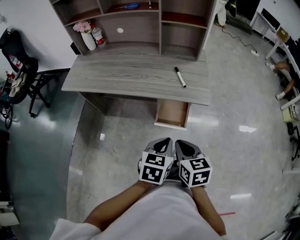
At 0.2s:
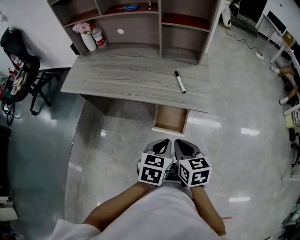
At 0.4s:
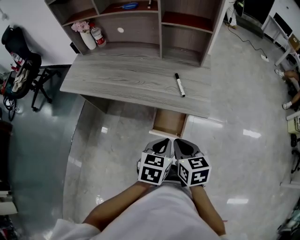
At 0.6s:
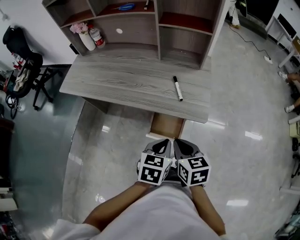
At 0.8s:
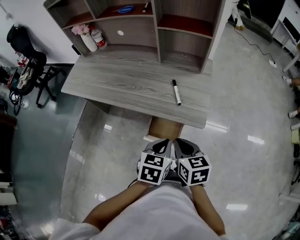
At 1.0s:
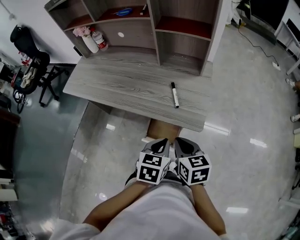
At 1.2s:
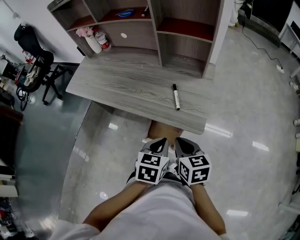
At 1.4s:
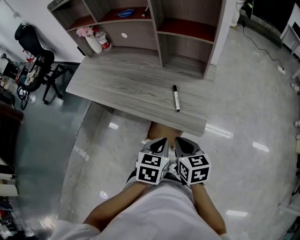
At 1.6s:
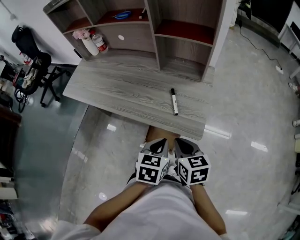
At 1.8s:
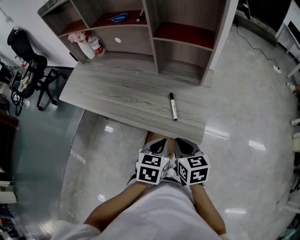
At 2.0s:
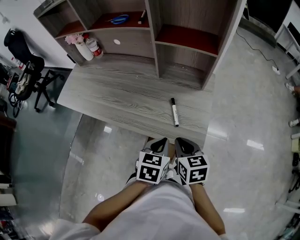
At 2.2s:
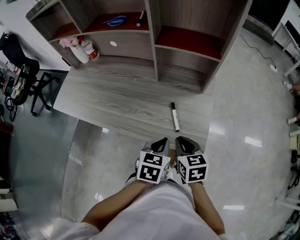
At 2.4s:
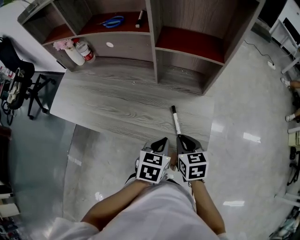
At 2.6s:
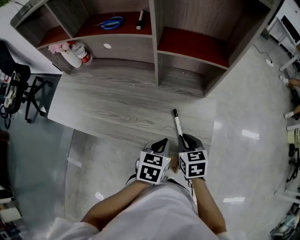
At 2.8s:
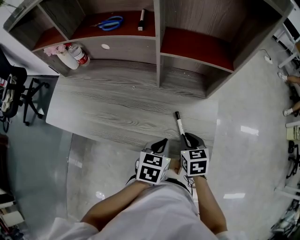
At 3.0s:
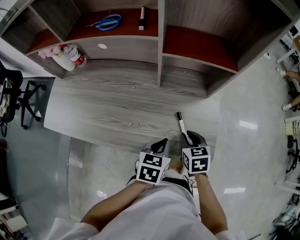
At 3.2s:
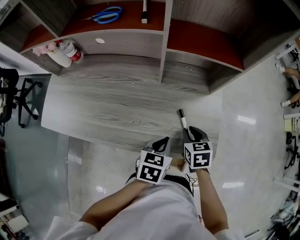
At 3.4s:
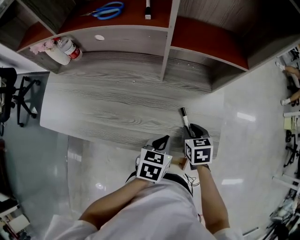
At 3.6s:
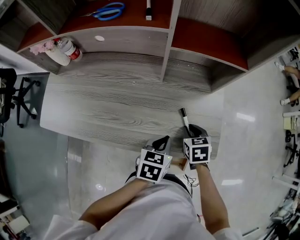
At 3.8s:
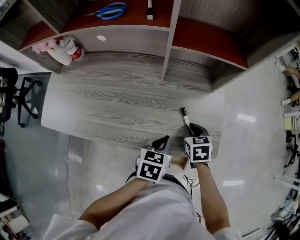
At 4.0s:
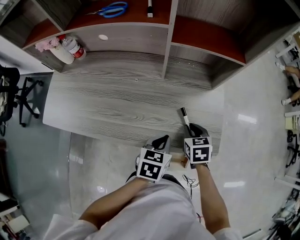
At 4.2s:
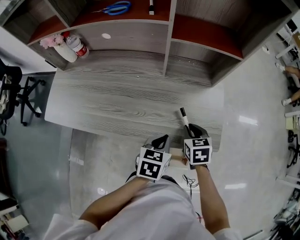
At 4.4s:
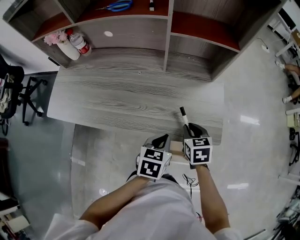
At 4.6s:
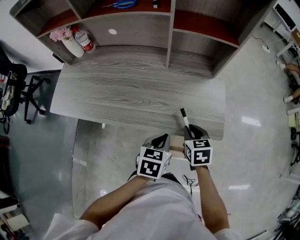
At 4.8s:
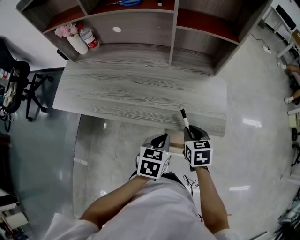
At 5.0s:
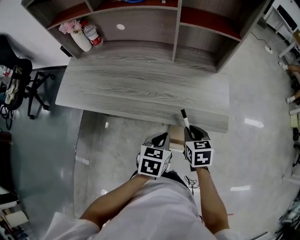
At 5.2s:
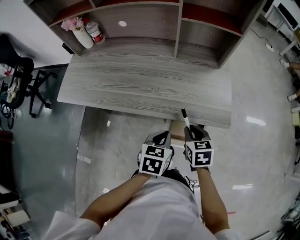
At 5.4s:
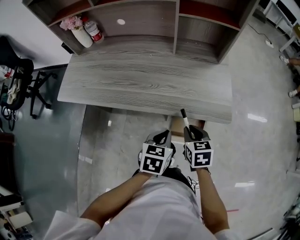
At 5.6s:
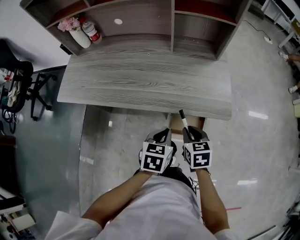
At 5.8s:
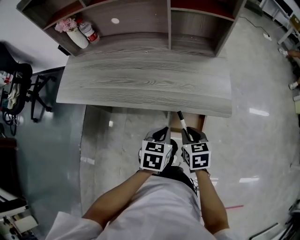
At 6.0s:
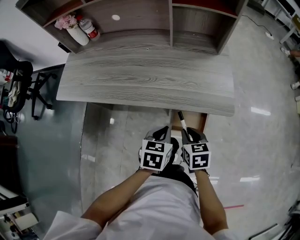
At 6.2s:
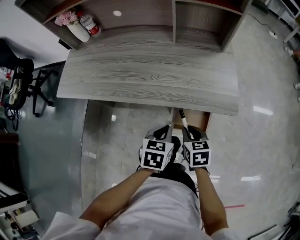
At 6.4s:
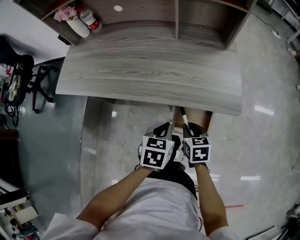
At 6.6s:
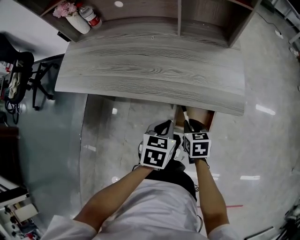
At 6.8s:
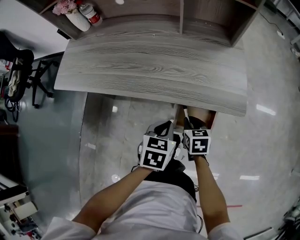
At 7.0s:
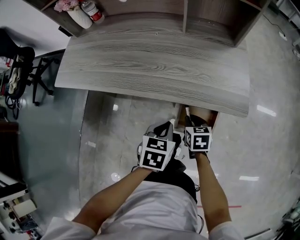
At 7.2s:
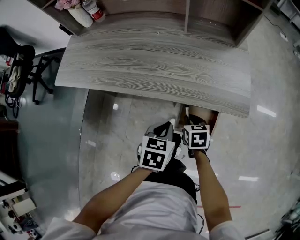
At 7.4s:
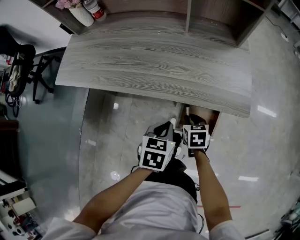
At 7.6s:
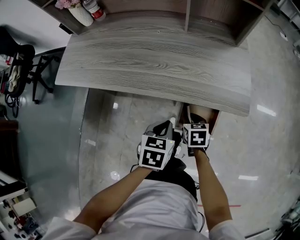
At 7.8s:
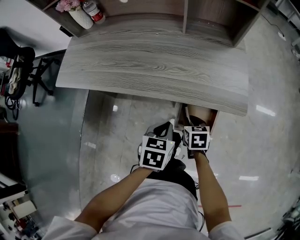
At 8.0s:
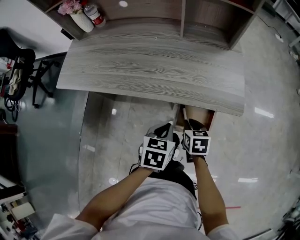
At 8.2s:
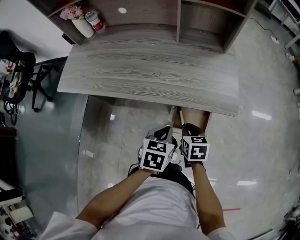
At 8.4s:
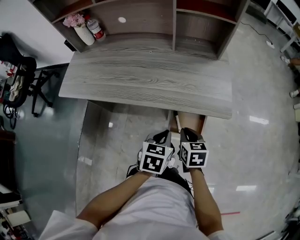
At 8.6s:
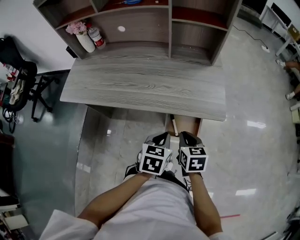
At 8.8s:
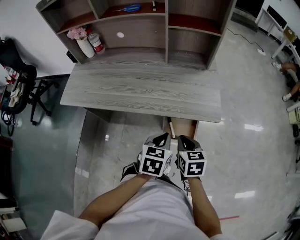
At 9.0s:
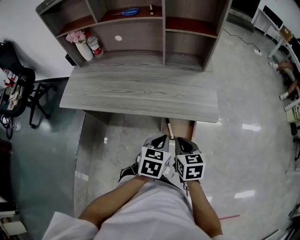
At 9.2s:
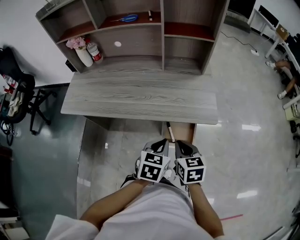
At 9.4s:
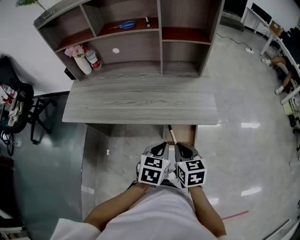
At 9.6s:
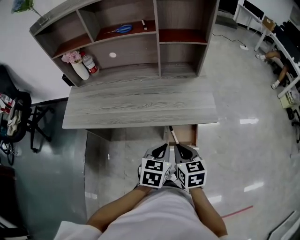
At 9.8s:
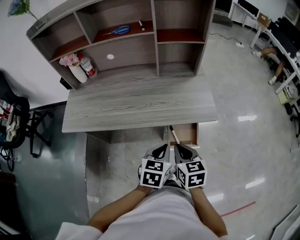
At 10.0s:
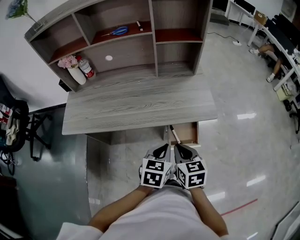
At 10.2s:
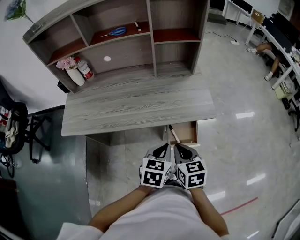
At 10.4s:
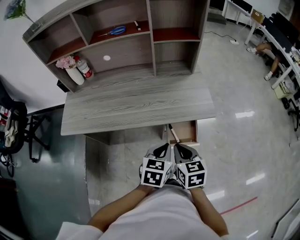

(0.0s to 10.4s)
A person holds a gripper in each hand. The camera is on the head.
0.0s - 1.4s: Both grippers travel together forward and to the right, roughly 20 cm.
1.4s - 3.0s: Both grippers move forward, roughly 20 cm. The right gripper swivels approximately 20 degrees.
3.0s - 4.4s: The two grippers go approximately 5 cm backward.
4.4s - 6.0s: The left gripper travels backward by about 10 cm; the right gripper is displaced backward by approximately 15 cm.
6.0s - 7.4s: The right gripper heads downward, covering approximately 10 cm.
7.4s - 9.0s: The left gripper moves upward and to the right, roughly 10 cm. Meanwhile the right gripper moves upward and backward, approximately 20 cm.
9.0s - 10.4s: The left gripper changes place by some 5 cm. Meanwhile the right gripper heads to the left, covering approximately 5 cm.

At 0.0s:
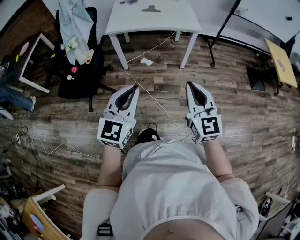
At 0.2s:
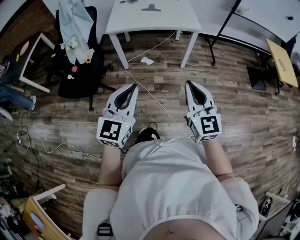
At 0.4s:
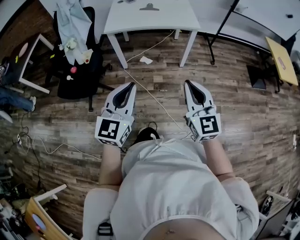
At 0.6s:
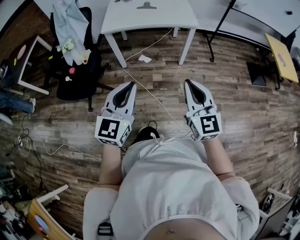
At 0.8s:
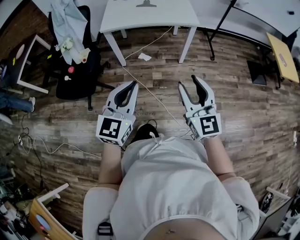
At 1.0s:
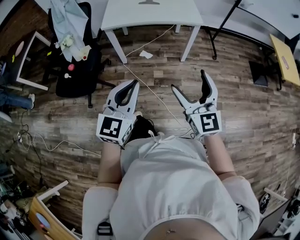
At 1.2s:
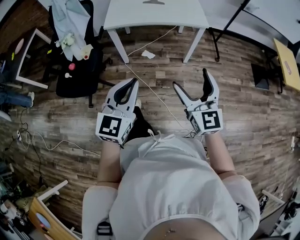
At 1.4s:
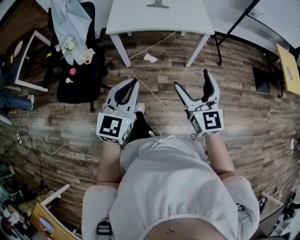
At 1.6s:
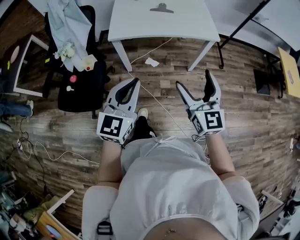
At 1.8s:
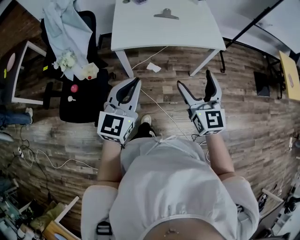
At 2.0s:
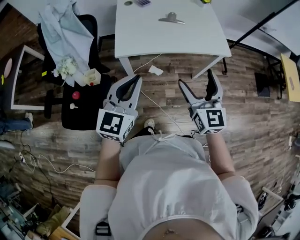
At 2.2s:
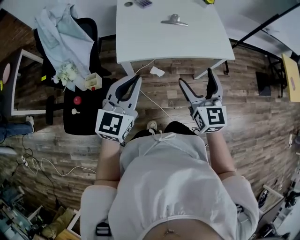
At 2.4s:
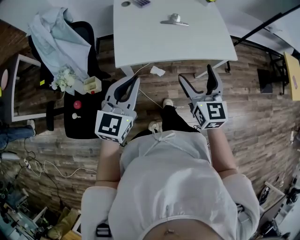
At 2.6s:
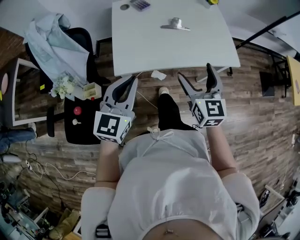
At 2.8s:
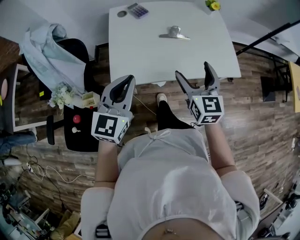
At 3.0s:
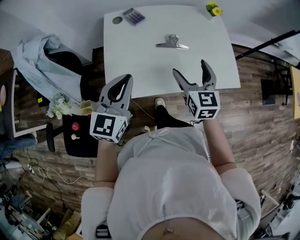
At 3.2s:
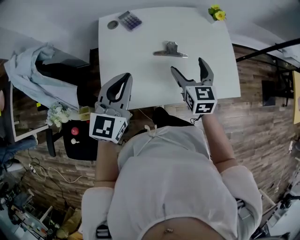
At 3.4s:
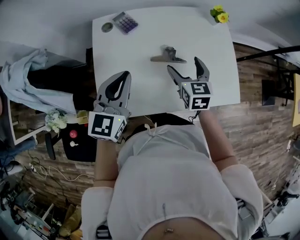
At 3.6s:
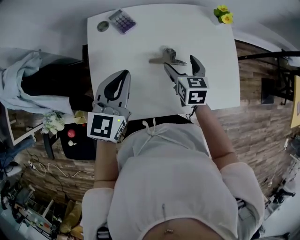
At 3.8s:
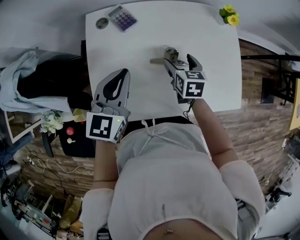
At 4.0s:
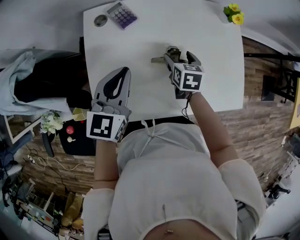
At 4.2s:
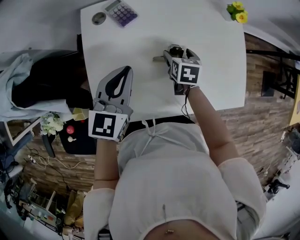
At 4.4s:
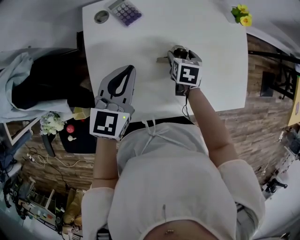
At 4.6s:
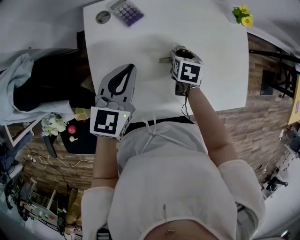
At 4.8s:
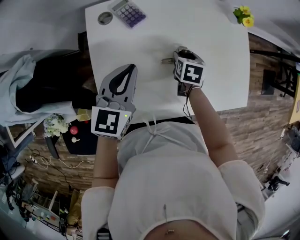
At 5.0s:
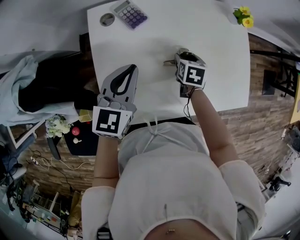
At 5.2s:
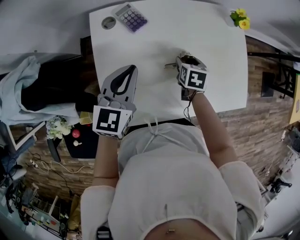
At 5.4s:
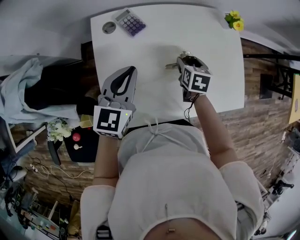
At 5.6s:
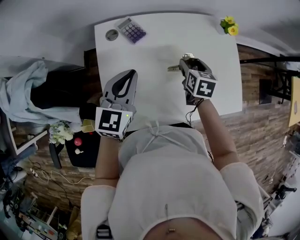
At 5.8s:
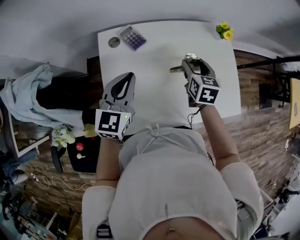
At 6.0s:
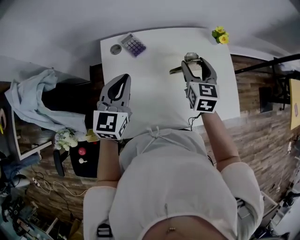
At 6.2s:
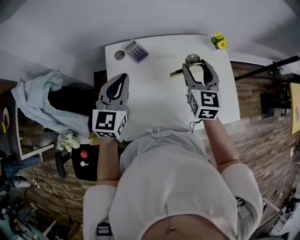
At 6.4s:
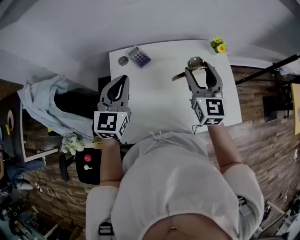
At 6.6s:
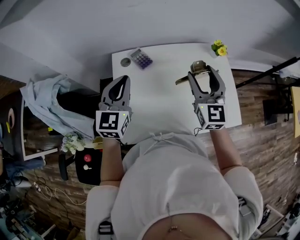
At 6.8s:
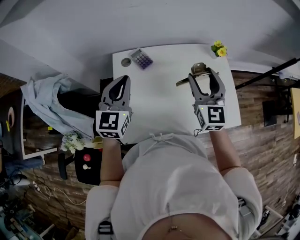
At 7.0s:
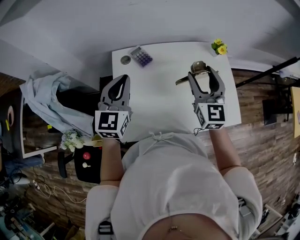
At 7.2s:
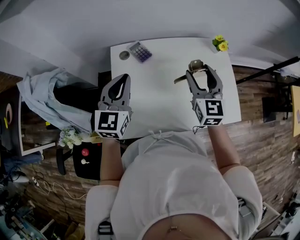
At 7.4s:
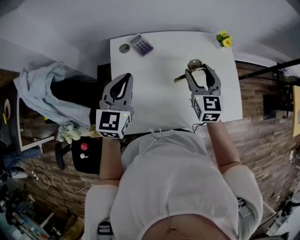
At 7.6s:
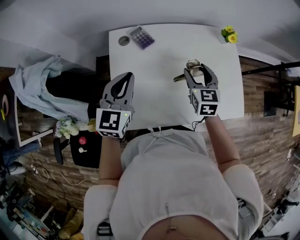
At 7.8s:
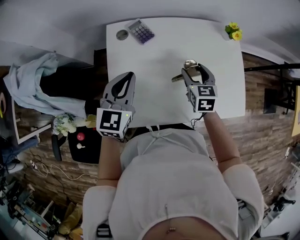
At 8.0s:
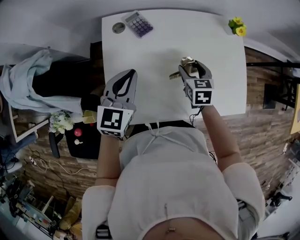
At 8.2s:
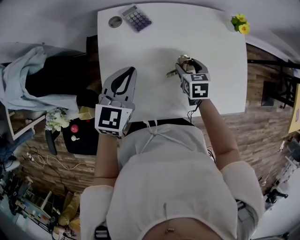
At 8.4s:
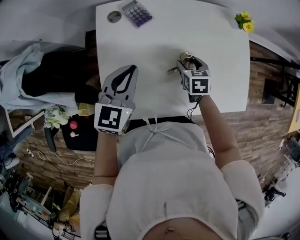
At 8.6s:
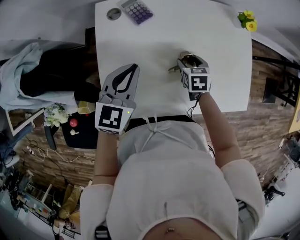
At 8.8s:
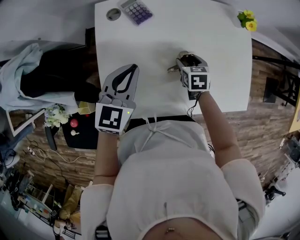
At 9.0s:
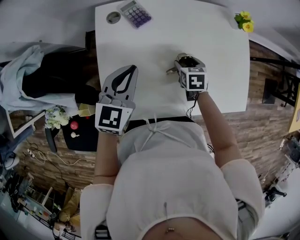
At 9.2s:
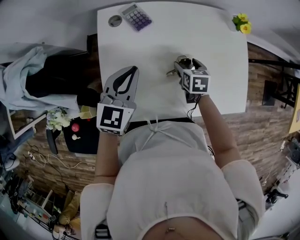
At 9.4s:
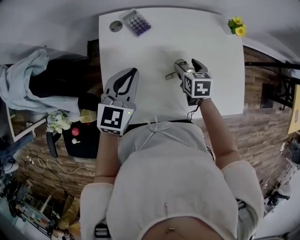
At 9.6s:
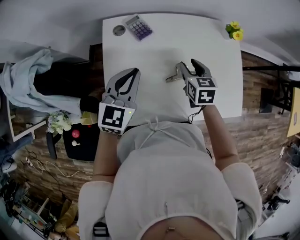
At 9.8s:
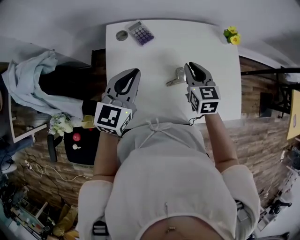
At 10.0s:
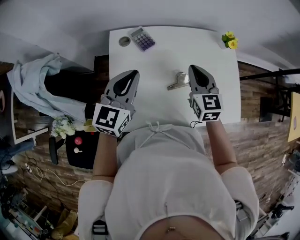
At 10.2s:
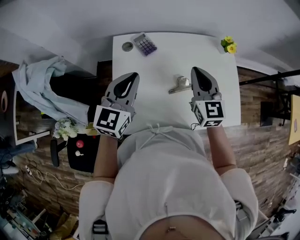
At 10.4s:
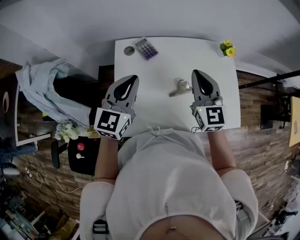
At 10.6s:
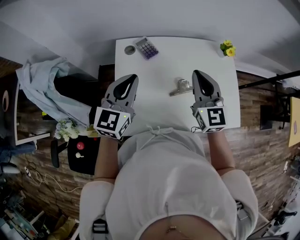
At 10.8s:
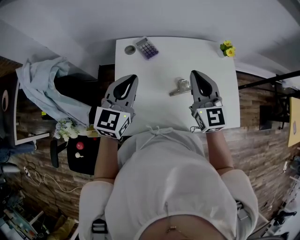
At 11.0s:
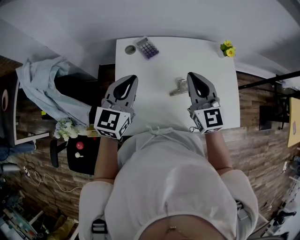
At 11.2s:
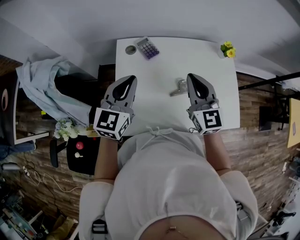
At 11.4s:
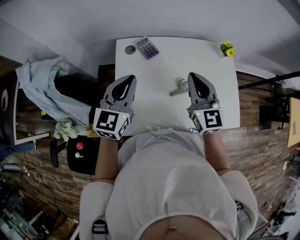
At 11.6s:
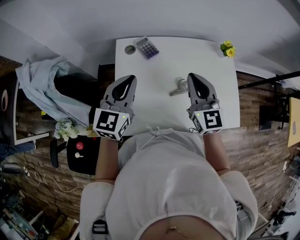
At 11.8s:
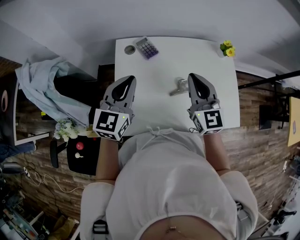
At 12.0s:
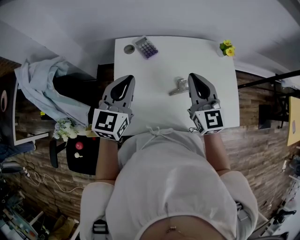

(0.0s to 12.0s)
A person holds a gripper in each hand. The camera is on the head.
0.0s - 1.6s: The left gripper heads forward and to the left, covering some 25 cm. Meanwhile the right gripper heads forward, covering approximately 25 cm, and opens its fingers.
1.6s - 3.0s: The pair of grippers is taken forward, approximately 50 cm.
3.0s - 4.4s: The left gripper moves forward and downward, some 25 cm, while the right gripper is displaced downward and forward by approximately 30 cm, and points its fingers roughly 40 degrees further downward.
4.4s - 6.0s: The right gripper goes about 25 cm upward, and points its fingers some 30 degrees further upward, while the left gripper is displaced upward by approximately 10 cm.
6.0s - 7.6s: The right gripper goes upward and returns, some 10 cm each way.
7.6s - 9.0s: The left gripper travels downward by about 10 cm; the right gripper heads downward, covering about 20 cm, and swivels about 30 degrees.
9.0s - 10.4s: The right gripper shifts some 30 cm upward, tilts its fingers roughly 50 degrees upward, and closes, while the left gripper shifts some 15 cm upward.
10.4s - 12.0s: The grippers stay close to where they were, moving slightly.

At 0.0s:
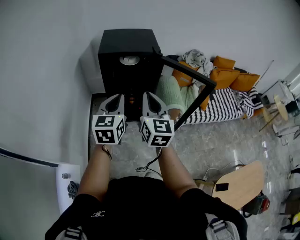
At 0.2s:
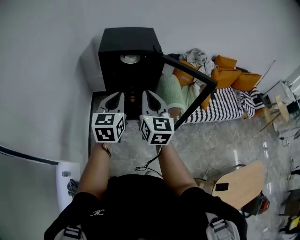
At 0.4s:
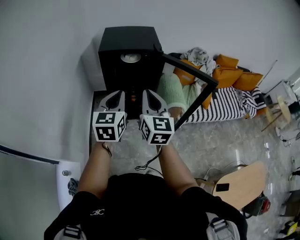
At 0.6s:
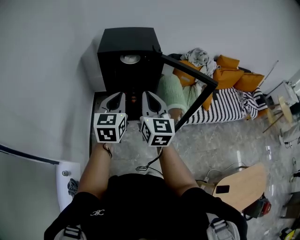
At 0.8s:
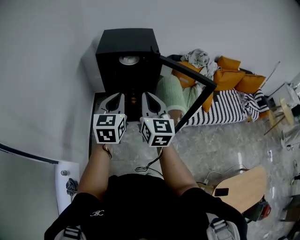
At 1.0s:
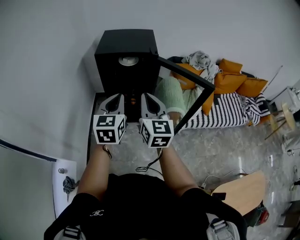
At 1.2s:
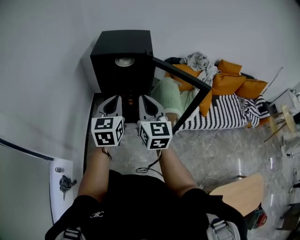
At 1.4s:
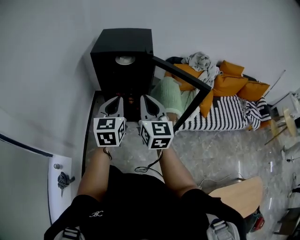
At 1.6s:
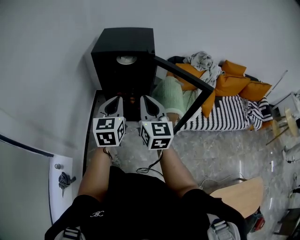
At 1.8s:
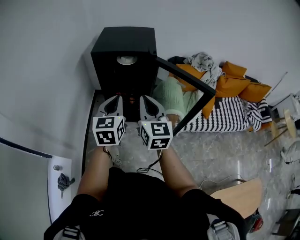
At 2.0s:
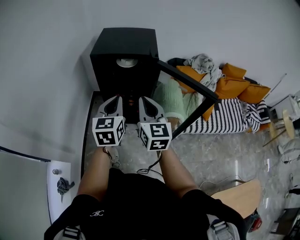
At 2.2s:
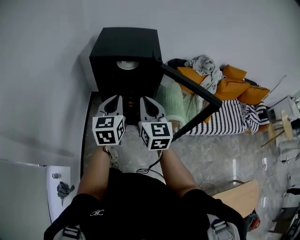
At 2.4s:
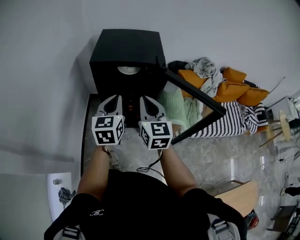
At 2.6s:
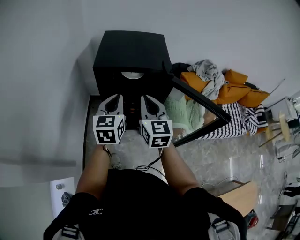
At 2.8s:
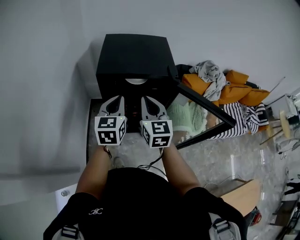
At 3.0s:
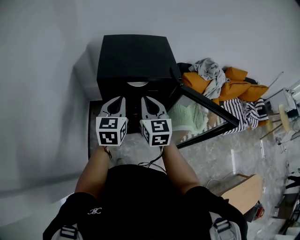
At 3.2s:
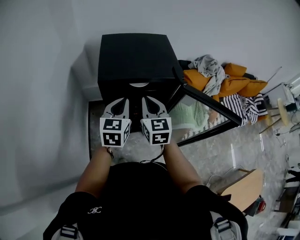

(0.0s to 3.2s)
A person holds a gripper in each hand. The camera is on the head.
0.0s - 1.6s: Both grippers travel together to the right, approximately 10 cm.
1.6s - 3.2s: The grippers both shift forward and to the left by about 30 cm.
